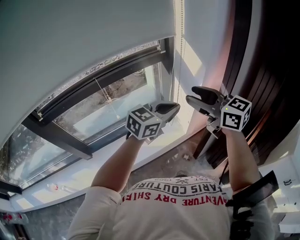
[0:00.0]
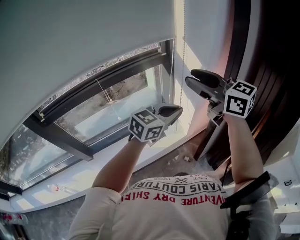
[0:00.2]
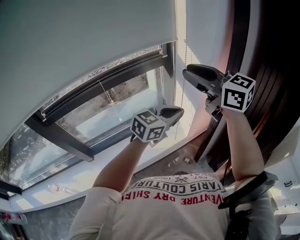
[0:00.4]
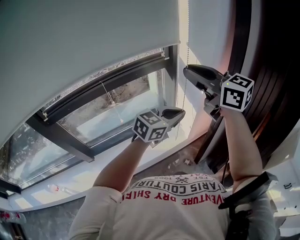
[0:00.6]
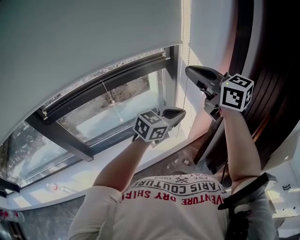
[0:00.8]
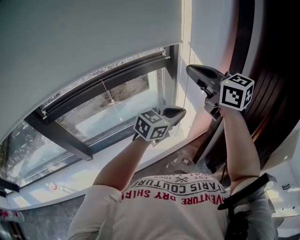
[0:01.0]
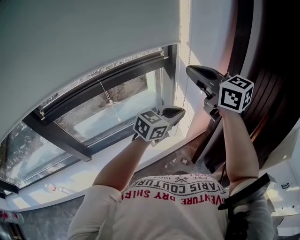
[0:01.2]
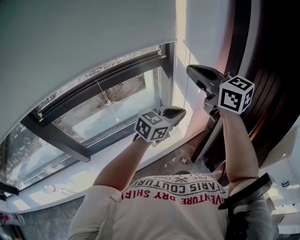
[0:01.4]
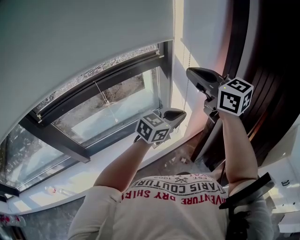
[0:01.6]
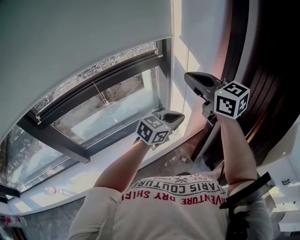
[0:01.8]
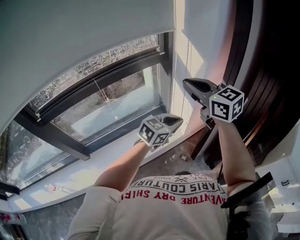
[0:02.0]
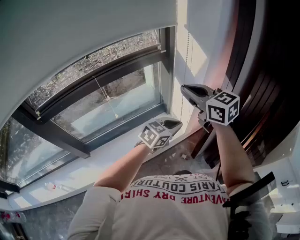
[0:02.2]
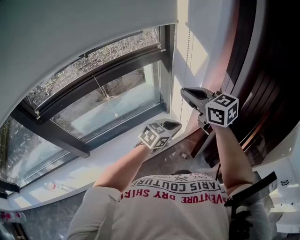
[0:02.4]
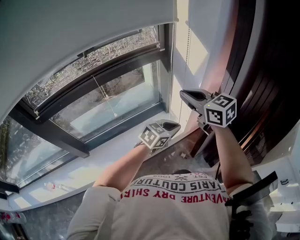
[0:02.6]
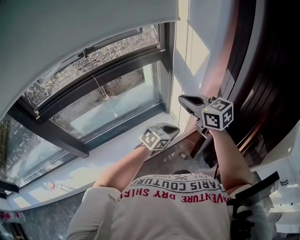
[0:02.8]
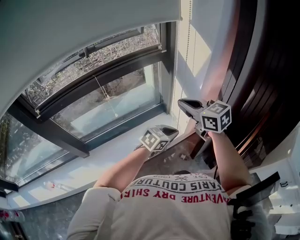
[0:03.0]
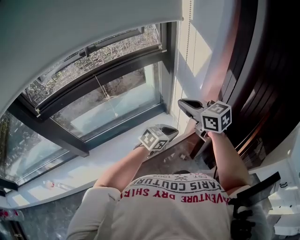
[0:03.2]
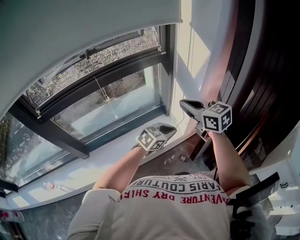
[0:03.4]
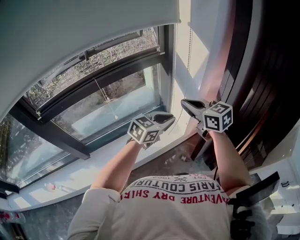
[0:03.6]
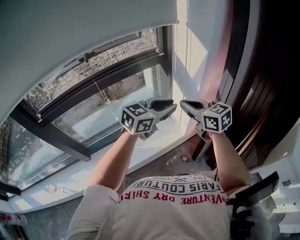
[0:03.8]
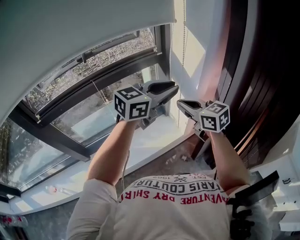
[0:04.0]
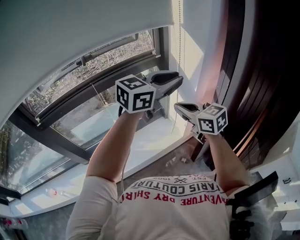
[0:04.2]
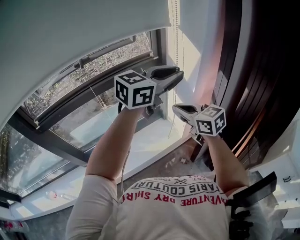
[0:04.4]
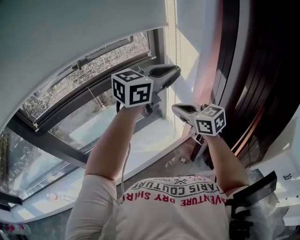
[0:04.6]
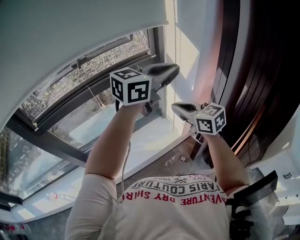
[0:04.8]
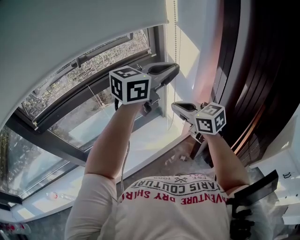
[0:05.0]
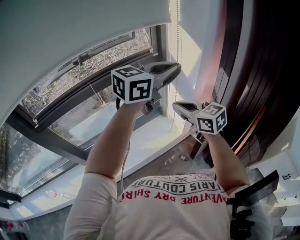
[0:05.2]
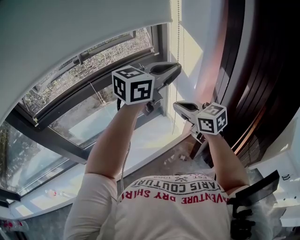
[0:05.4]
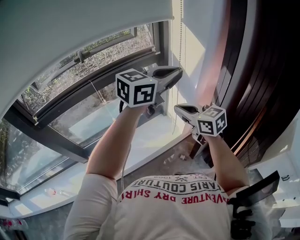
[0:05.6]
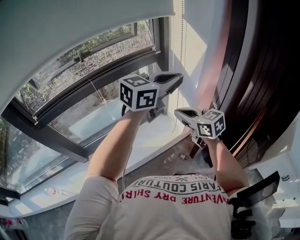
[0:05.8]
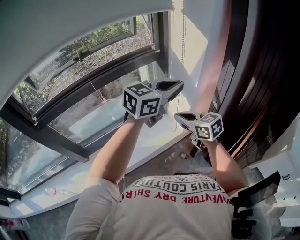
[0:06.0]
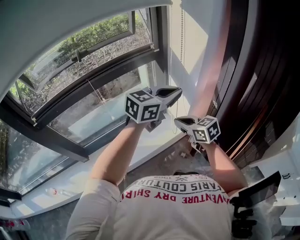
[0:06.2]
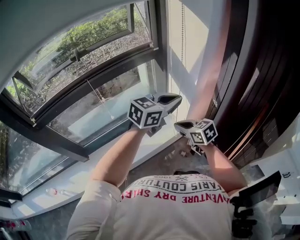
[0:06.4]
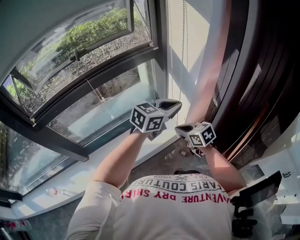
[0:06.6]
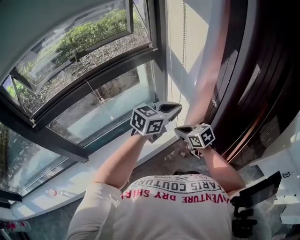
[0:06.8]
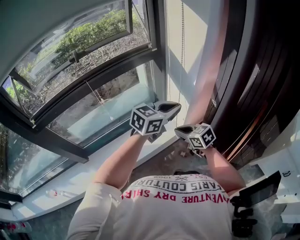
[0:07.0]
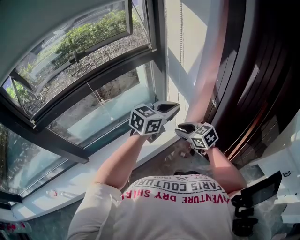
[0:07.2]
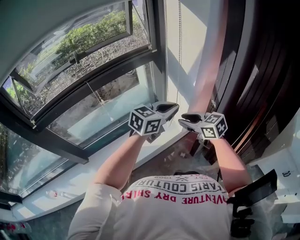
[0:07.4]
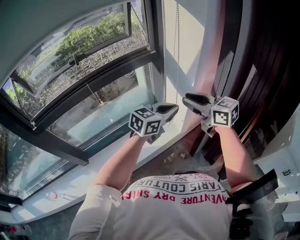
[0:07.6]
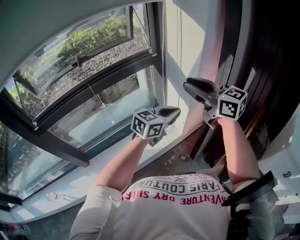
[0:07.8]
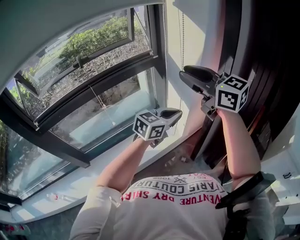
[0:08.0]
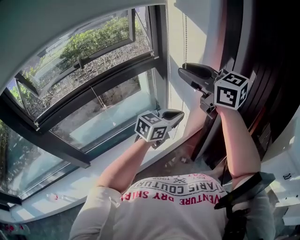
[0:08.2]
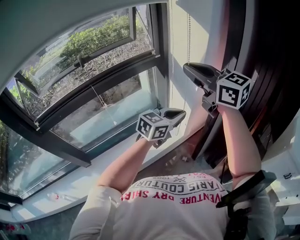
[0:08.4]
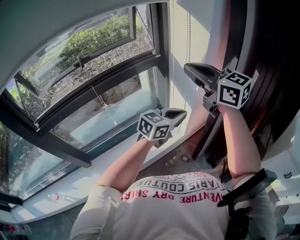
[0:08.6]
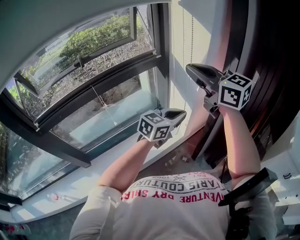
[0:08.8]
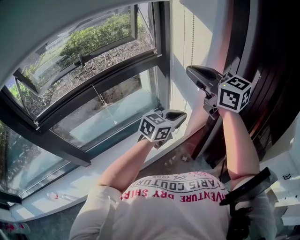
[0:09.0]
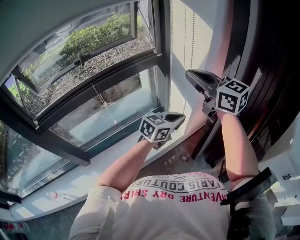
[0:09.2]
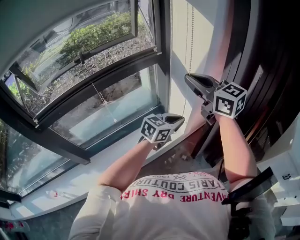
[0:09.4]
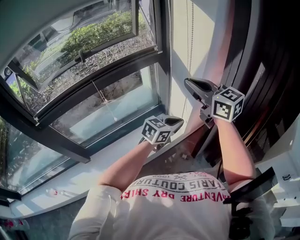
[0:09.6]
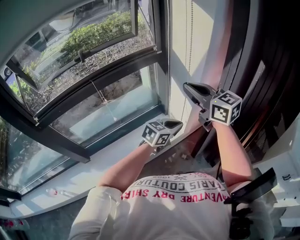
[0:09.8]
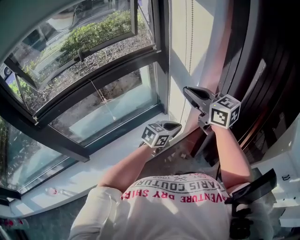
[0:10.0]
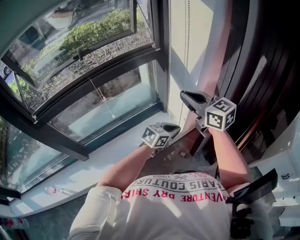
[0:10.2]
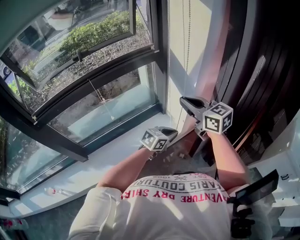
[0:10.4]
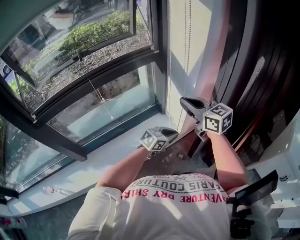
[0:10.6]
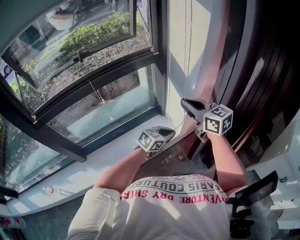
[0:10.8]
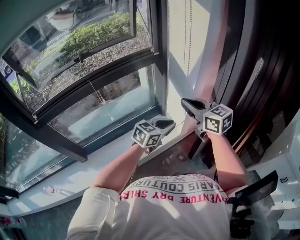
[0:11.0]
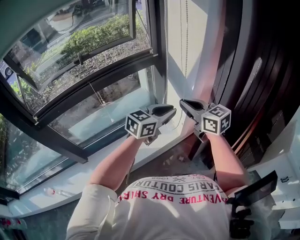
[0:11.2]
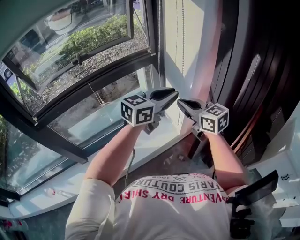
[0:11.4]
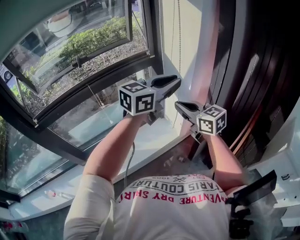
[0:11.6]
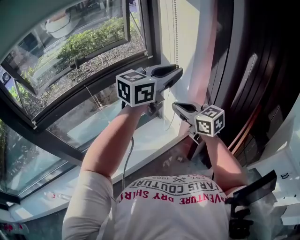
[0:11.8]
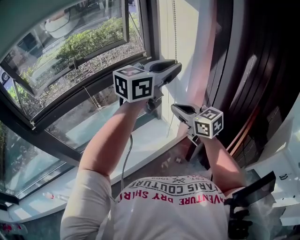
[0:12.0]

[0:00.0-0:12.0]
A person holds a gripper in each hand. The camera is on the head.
0:00.0 to 0:01.6: The right gripper shifts about 10 cm upward, and closes up.
0:01.6 to 0:03.0: Both grippers move downward, approximately 15 cm.
0:03.0 to 0:04.4: The left gripper moves upward, some 35 cm, and swivels approximately 30 degrees.
0:04.4 to 0:06.0: The two grippers go about 10 cm downward.
0:06.0 to 0:07.6: The right gripper heads upward, covering some 10 cm, and opens up. The left gripper heads downward, covering roughly 10 cm.
0:07.6 to 0:09.0: The right gripper is displaced upward by about 15 cm, and closes up.
0:09.0 to 0:10.4: The grippers both shift downward by roughly 15 cm.
0:10.4 to 0:12.0: The left gripper travels upward by some 35 cm, and rotates some 30 degrees.

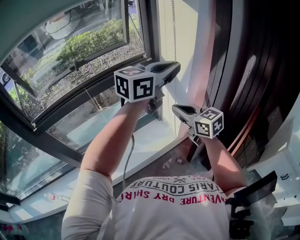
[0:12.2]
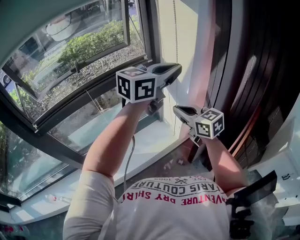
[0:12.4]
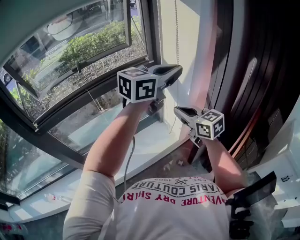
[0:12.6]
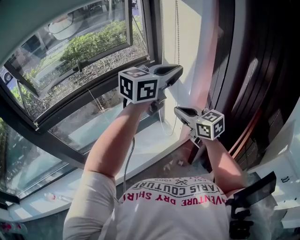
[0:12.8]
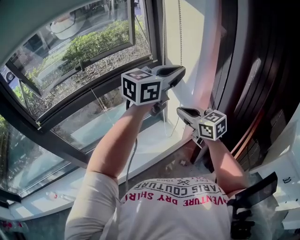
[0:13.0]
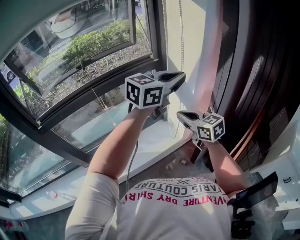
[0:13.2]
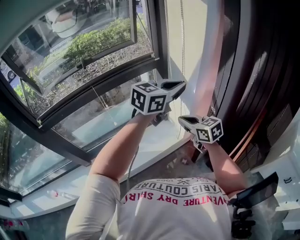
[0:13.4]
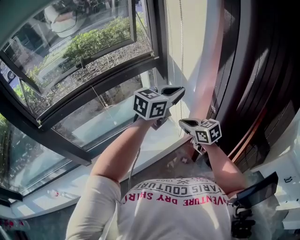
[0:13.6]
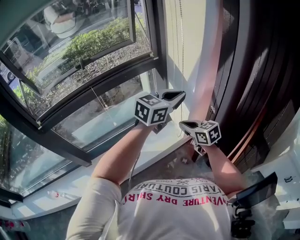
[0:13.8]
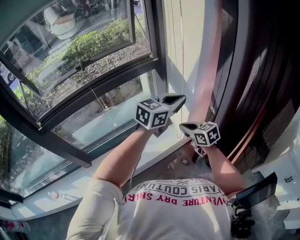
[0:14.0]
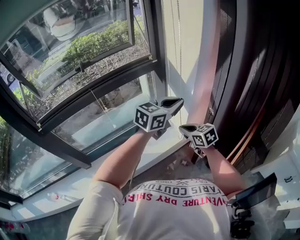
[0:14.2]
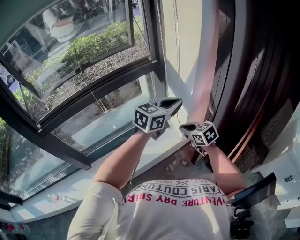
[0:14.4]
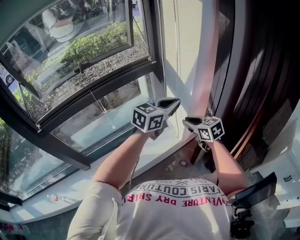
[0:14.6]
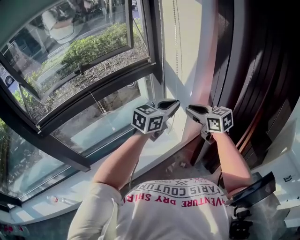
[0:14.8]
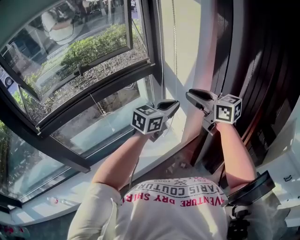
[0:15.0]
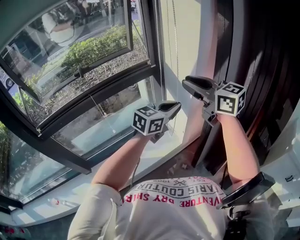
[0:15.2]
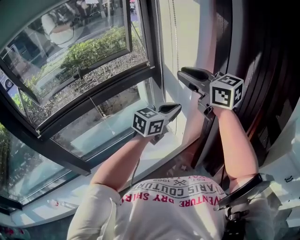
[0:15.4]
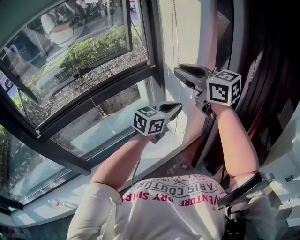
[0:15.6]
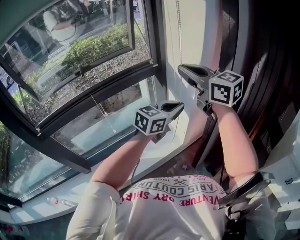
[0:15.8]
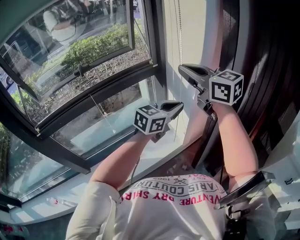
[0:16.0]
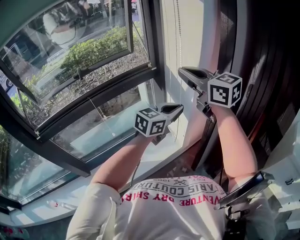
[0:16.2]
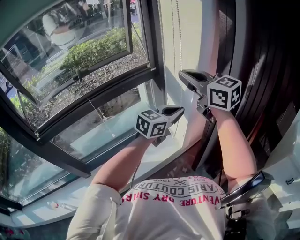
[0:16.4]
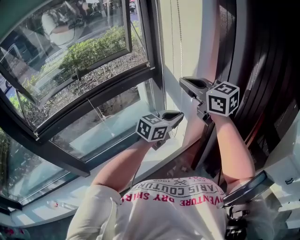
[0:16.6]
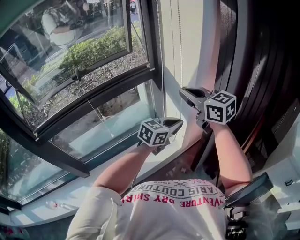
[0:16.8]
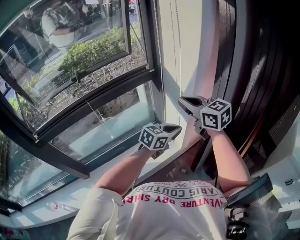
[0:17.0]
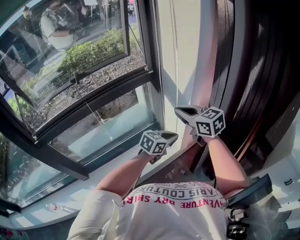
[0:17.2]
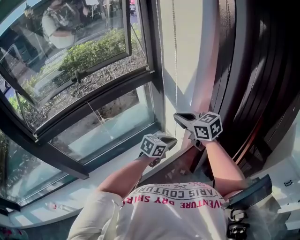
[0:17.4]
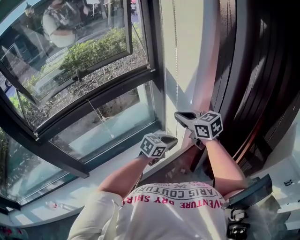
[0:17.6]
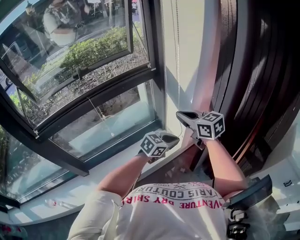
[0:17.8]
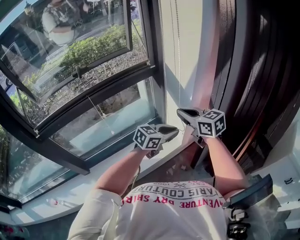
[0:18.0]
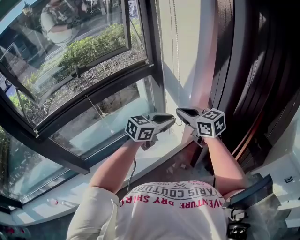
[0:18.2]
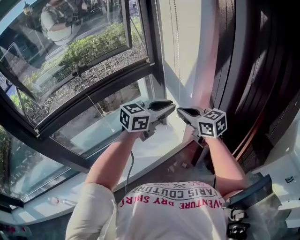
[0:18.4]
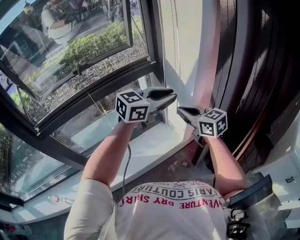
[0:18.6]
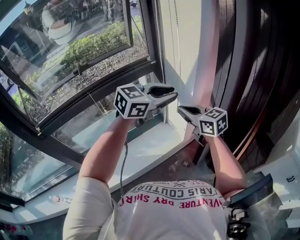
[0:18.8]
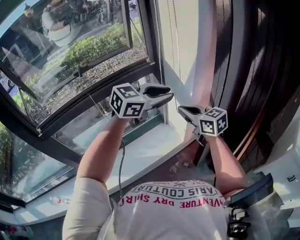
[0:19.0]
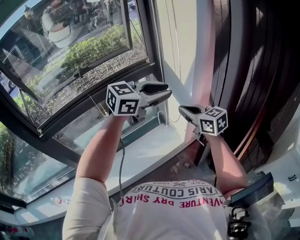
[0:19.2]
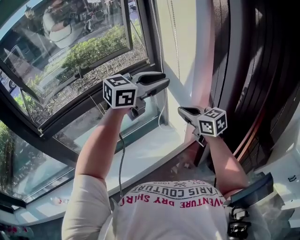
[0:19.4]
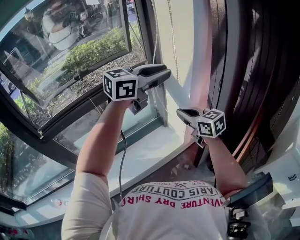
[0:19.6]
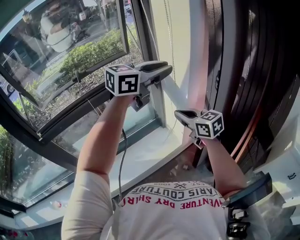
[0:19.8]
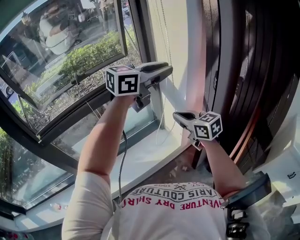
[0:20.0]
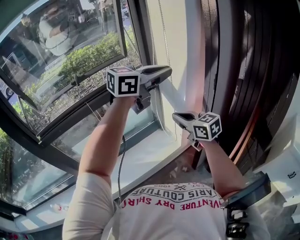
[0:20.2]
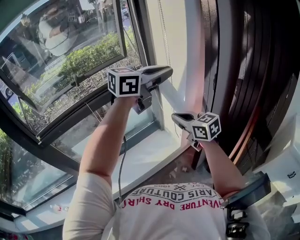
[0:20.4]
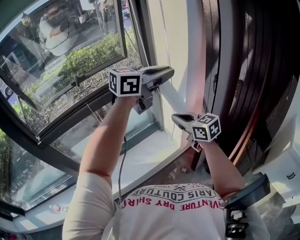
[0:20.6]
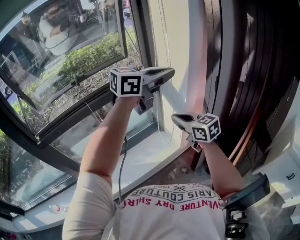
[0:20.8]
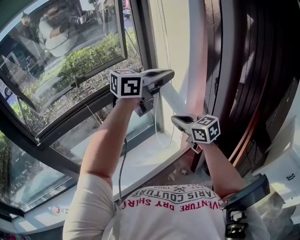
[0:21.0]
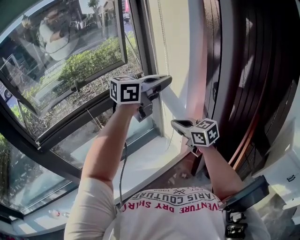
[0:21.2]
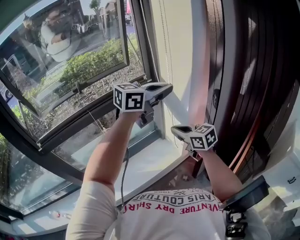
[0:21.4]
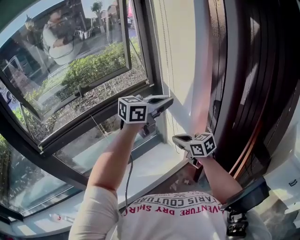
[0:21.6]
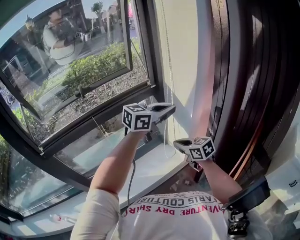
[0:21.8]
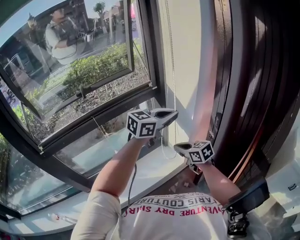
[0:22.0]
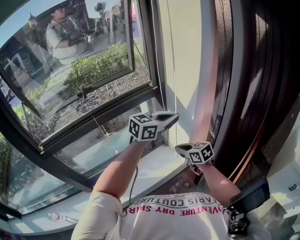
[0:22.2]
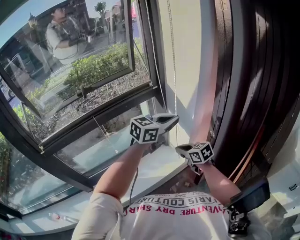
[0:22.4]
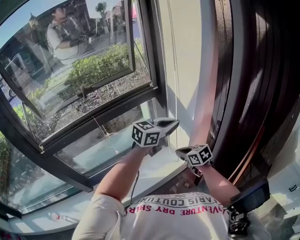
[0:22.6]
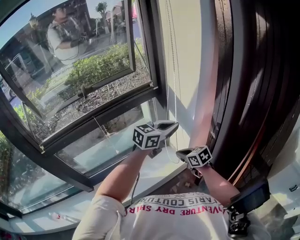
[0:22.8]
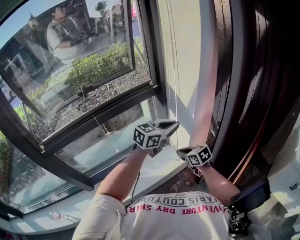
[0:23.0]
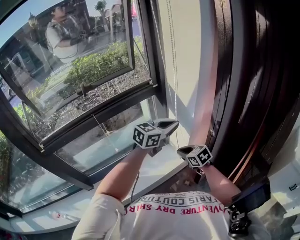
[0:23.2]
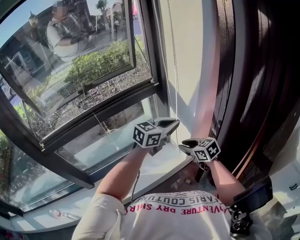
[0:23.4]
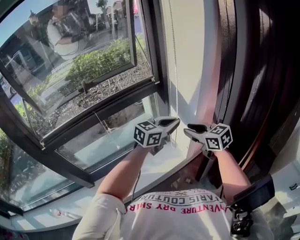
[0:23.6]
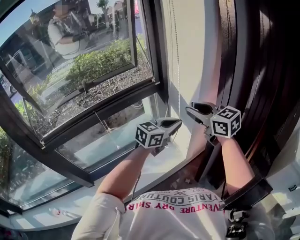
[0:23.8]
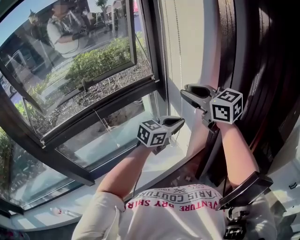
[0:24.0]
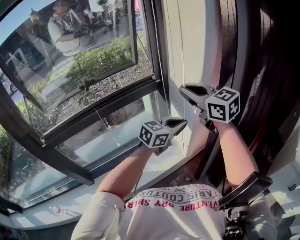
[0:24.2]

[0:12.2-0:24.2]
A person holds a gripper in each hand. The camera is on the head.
0:12.2 to 0:13.8: Both grippers travel together downward, roughly 15 cm.
0:13.8 to 0:15.2: The right gripper is displaced upward by some 30 cm, turns by about 30 degrees, and opens.
0:15.2 to 0:16.6: The right gripper closes.
0:16.6 to 0:18.2: The left gripper goes downward and returns, about 15 cm each way, while the right gripper moves downward, about 15 cm.
0:18.2 to 0:19.8: The left gripper is displaced upward by about 25 cm.
0:19.8 to 0:21.2: The left gripper closes its fingers.
0:21.2 to 0:22.6: Both grippers travel together downward, some 15 cm.
0:22.6 to 0:24.2: The right gripper shifts about 35 cm upward, changes its angle by some 30 degrees, and opens and closes again.
